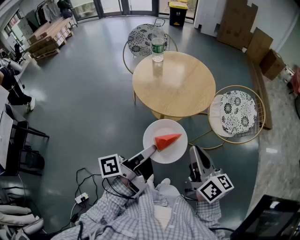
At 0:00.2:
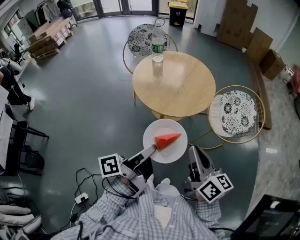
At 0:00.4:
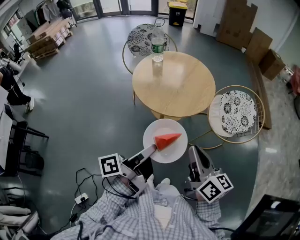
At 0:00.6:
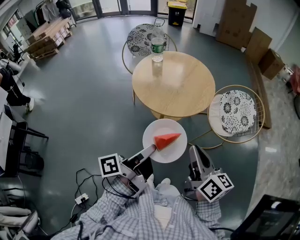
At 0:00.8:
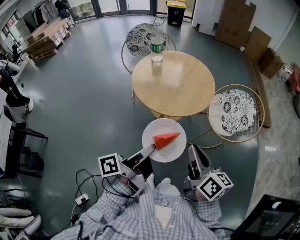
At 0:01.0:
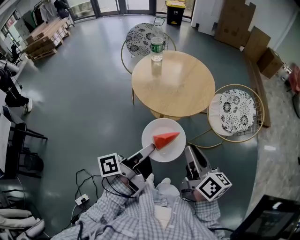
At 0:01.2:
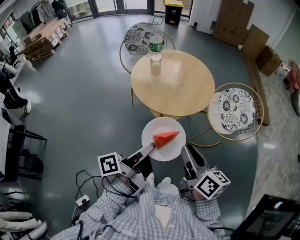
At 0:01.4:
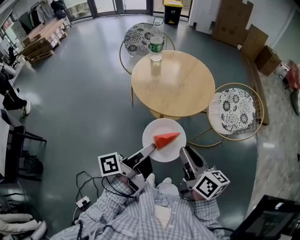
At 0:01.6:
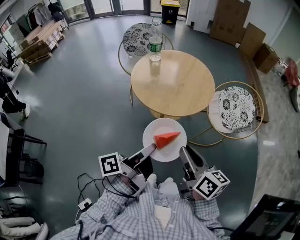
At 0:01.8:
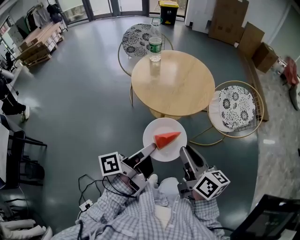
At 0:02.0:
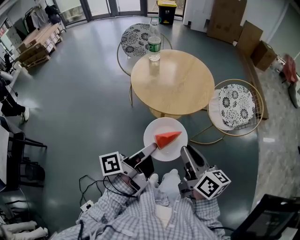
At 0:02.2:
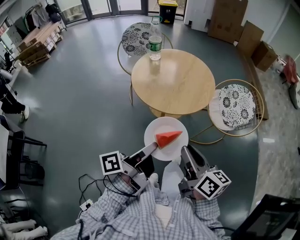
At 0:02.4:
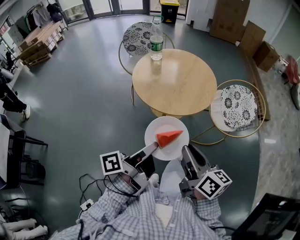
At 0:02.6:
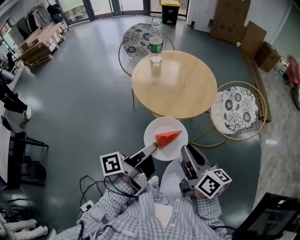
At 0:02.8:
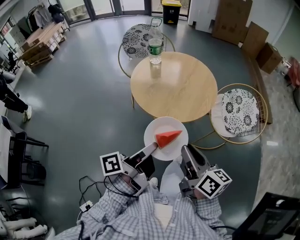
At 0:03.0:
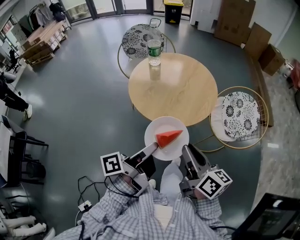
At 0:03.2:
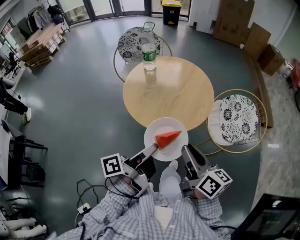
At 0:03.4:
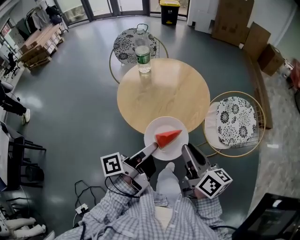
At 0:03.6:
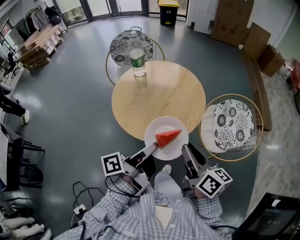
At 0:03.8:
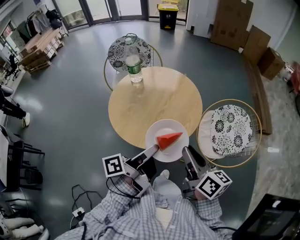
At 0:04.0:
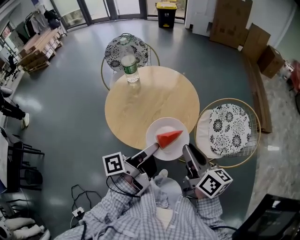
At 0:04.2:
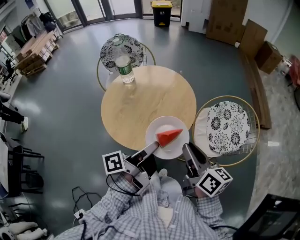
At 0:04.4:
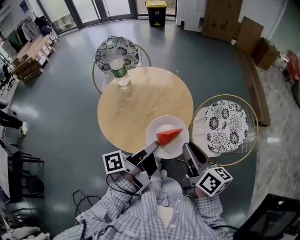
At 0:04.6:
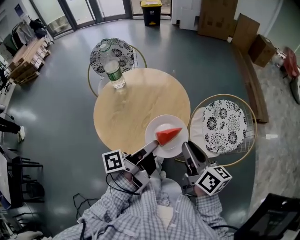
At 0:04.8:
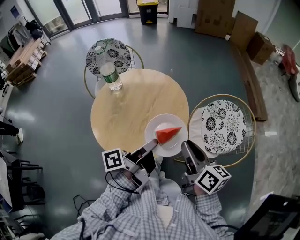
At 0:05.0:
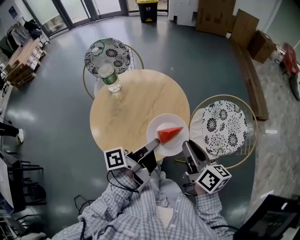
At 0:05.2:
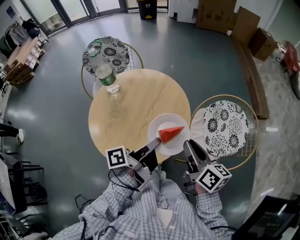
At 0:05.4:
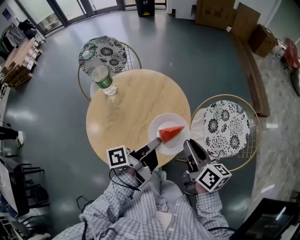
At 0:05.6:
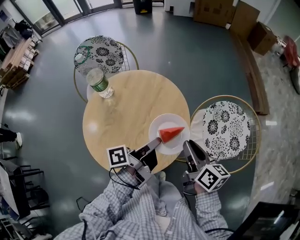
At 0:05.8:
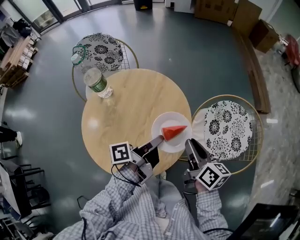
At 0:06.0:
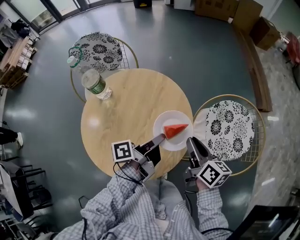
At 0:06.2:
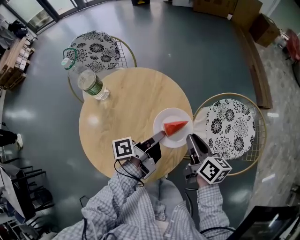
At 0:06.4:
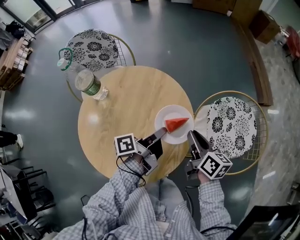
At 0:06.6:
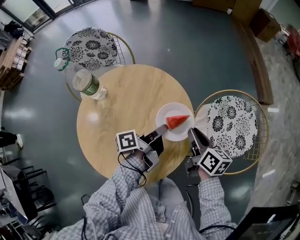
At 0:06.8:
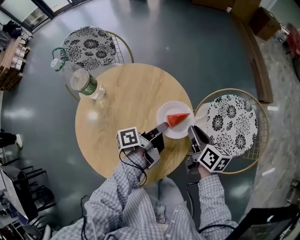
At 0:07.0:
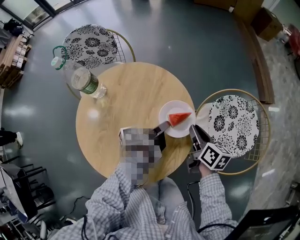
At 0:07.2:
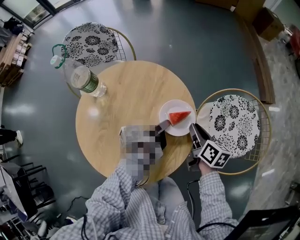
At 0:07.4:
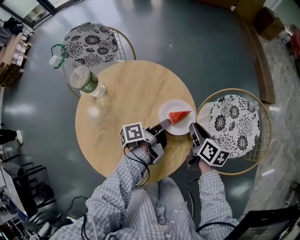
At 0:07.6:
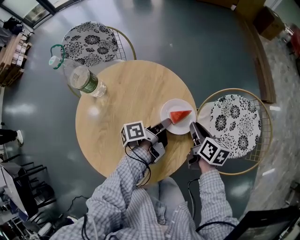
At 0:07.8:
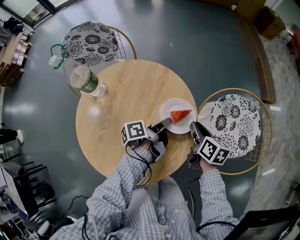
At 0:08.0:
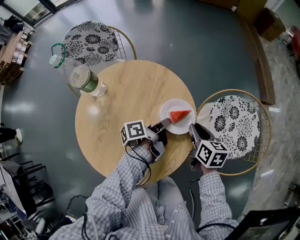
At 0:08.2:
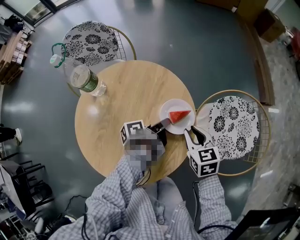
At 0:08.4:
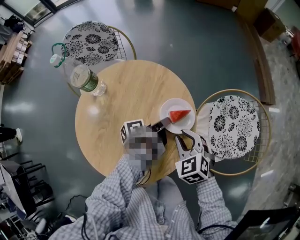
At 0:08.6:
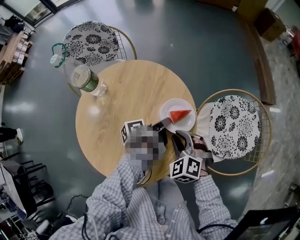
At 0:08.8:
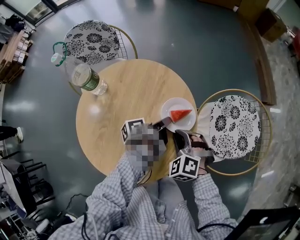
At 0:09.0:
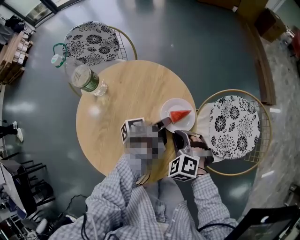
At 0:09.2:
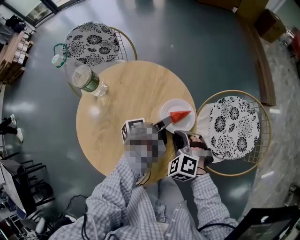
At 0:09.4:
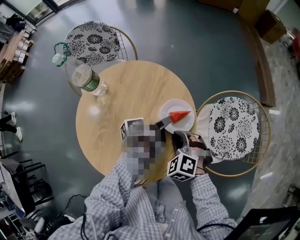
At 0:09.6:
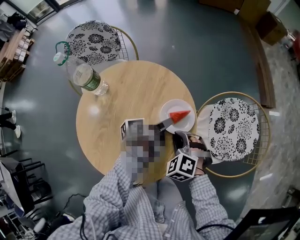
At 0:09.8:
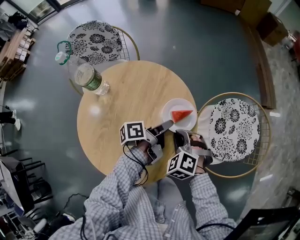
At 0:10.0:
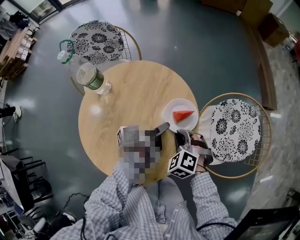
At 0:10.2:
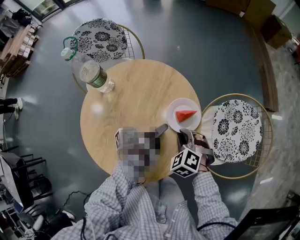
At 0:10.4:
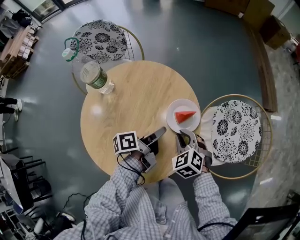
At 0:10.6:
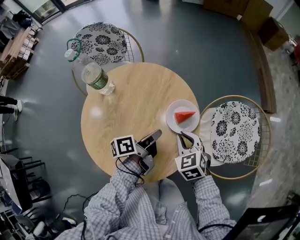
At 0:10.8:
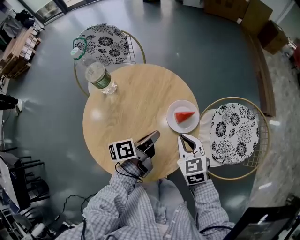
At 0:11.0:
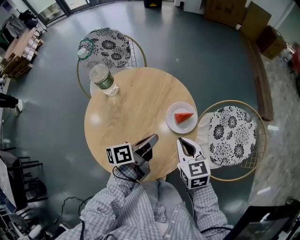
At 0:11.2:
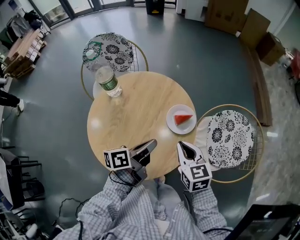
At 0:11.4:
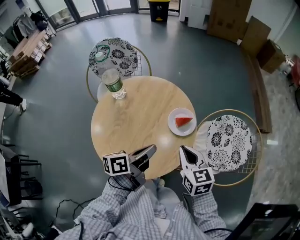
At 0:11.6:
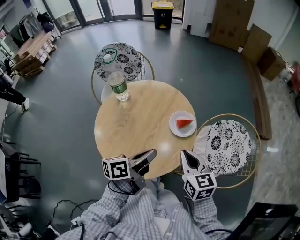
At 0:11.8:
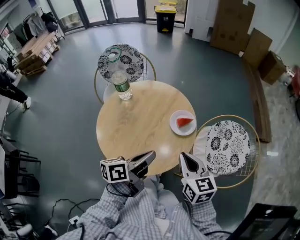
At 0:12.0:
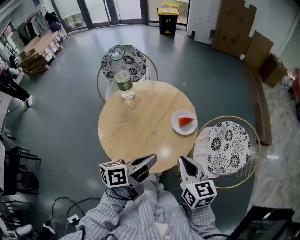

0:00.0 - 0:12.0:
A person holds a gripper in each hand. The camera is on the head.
0:00.0 - 0:01.6: The right gripper ends up roughly 5 cm from where it was.
0:01.6 - 0:03.0: The right gripper shifts by some 10 cm.
0:03.0 - 0:04.4: The right gripper changes place by some 20 cm.
0:04.4 - 0:06.0: The right gripper shifts by approximately 20 cm.
0:06.0 - 0:07.6: The right gripper is displaced downward by approximately 10 cm.
0:07.6 - 0:09.0: The right gripper changes place by some 10 cm, and twists approximately 90 degrees counterclockwise, seen from behind.
0:10.4 - 0:12.0: The right gripper heads upward, covering approximately 20 cm, and tips its fingers upward by some 30 degrees.

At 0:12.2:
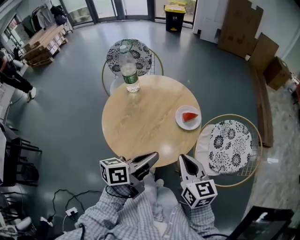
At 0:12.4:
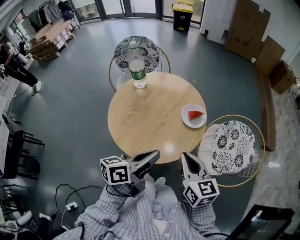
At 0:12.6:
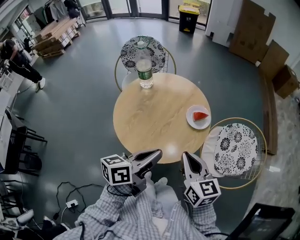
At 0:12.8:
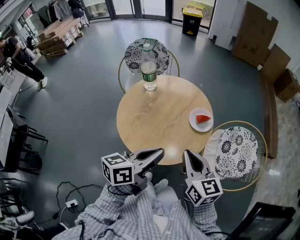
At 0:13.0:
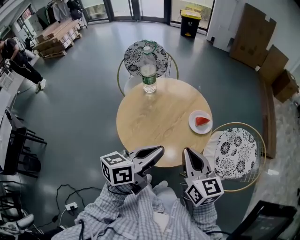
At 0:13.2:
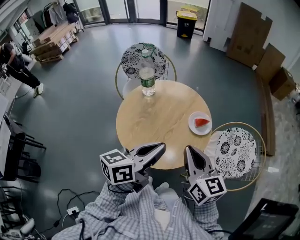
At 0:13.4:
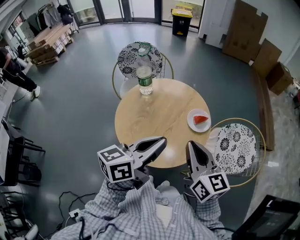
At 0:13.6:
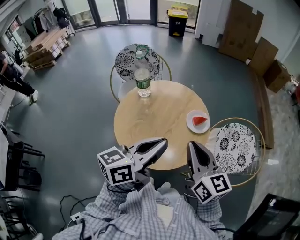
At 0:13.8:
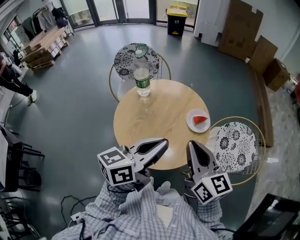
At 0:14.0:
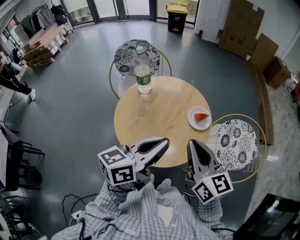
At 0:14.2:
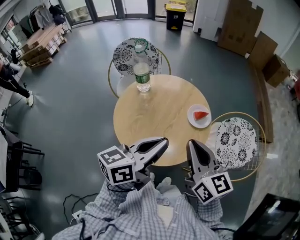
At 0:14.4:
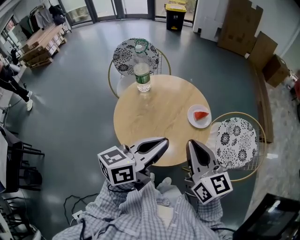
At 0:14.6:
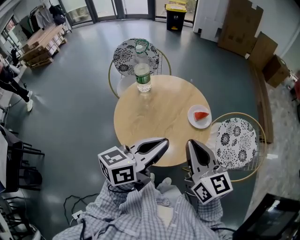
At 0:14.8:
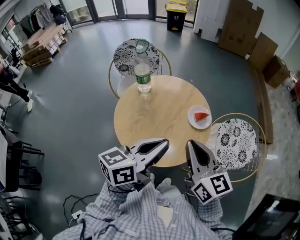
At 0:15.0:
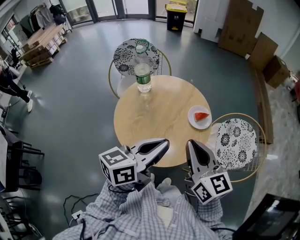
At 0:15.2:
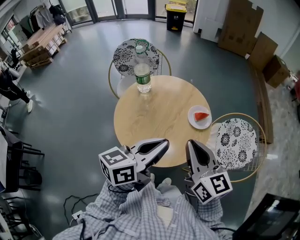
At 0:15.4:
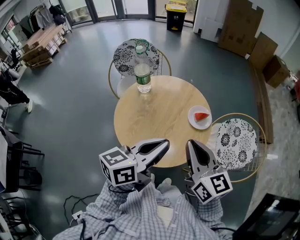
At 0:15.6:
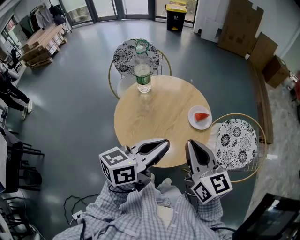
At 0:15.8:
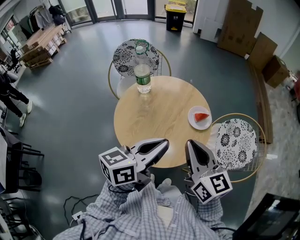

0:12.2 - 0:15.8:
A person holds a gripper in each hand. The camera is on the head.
0:12.2 - 0:14.0: The right gripper goes about 10 cm upward.

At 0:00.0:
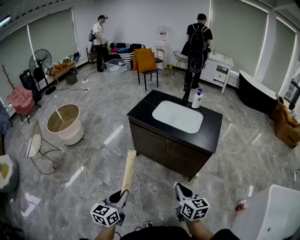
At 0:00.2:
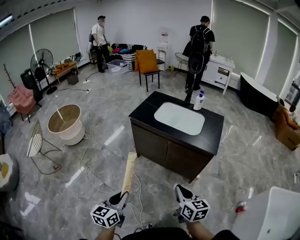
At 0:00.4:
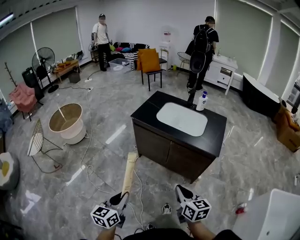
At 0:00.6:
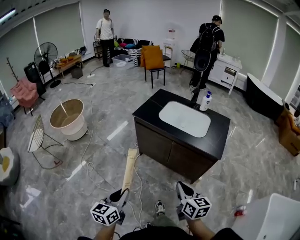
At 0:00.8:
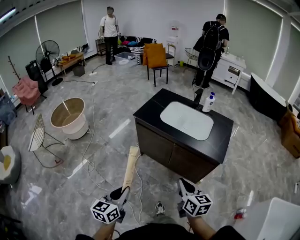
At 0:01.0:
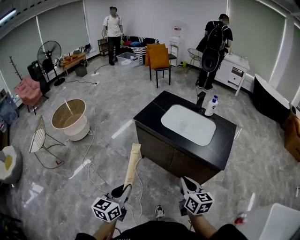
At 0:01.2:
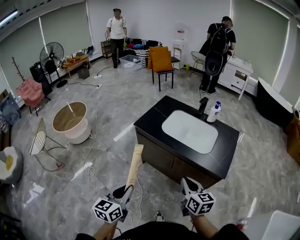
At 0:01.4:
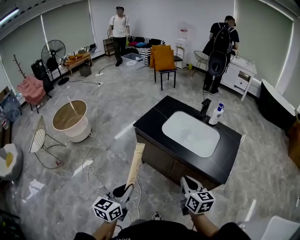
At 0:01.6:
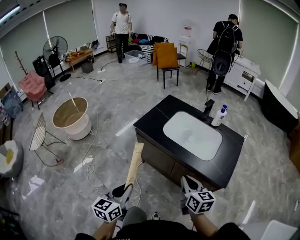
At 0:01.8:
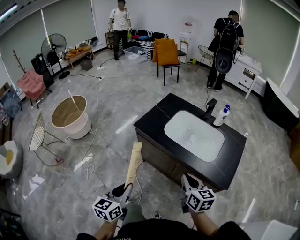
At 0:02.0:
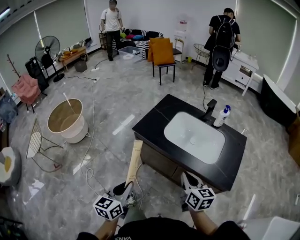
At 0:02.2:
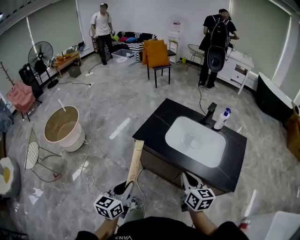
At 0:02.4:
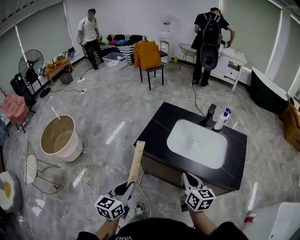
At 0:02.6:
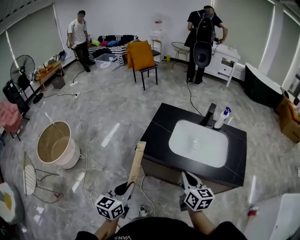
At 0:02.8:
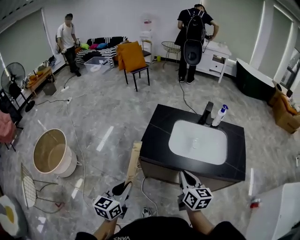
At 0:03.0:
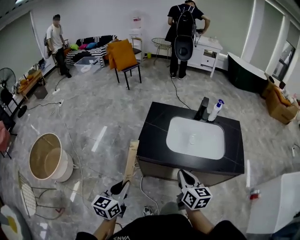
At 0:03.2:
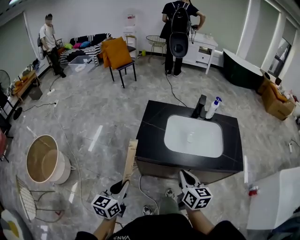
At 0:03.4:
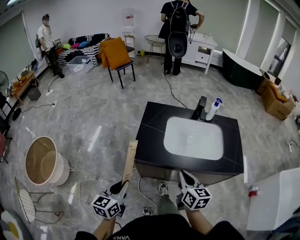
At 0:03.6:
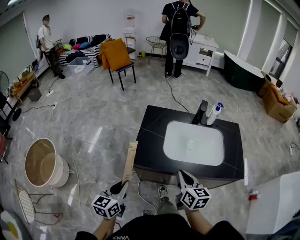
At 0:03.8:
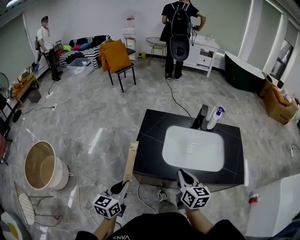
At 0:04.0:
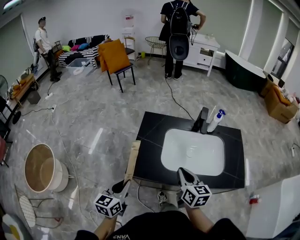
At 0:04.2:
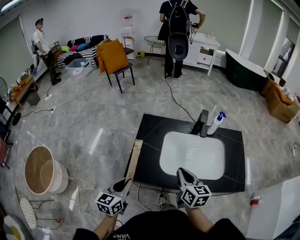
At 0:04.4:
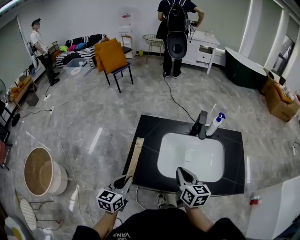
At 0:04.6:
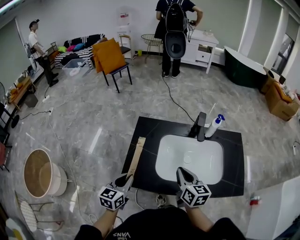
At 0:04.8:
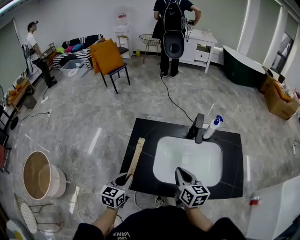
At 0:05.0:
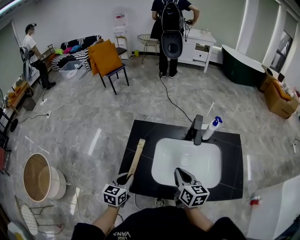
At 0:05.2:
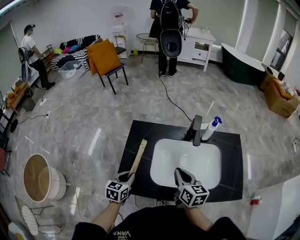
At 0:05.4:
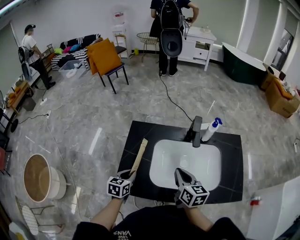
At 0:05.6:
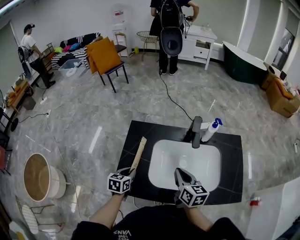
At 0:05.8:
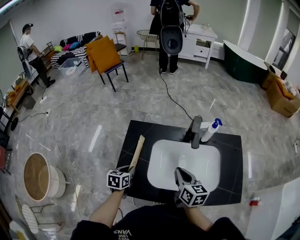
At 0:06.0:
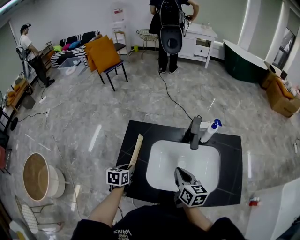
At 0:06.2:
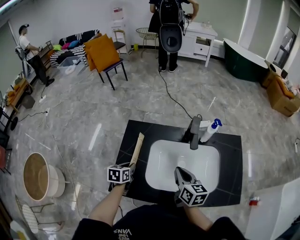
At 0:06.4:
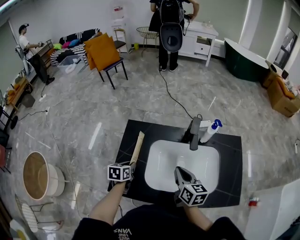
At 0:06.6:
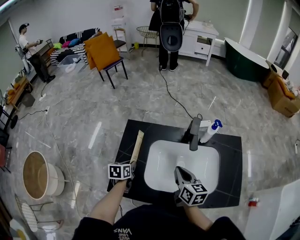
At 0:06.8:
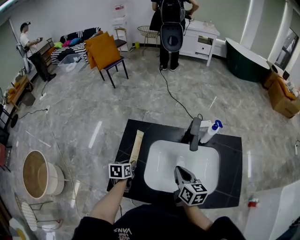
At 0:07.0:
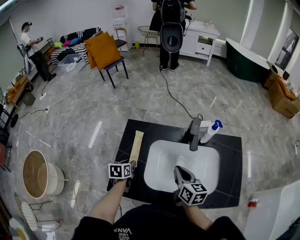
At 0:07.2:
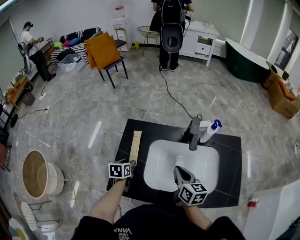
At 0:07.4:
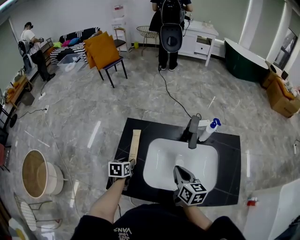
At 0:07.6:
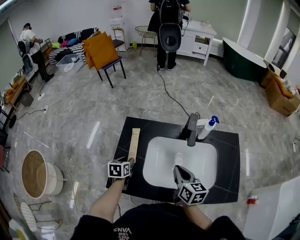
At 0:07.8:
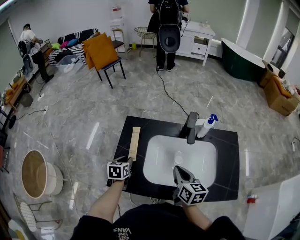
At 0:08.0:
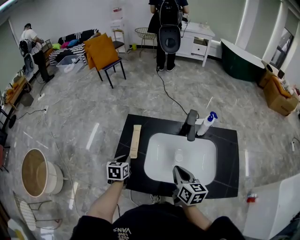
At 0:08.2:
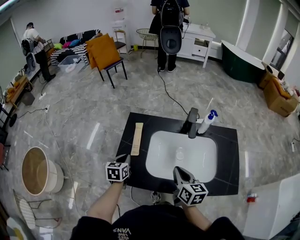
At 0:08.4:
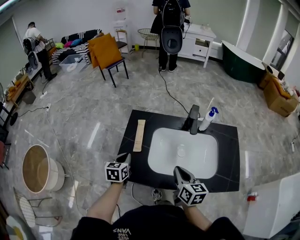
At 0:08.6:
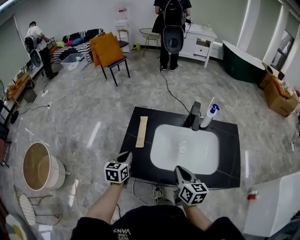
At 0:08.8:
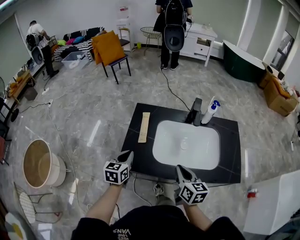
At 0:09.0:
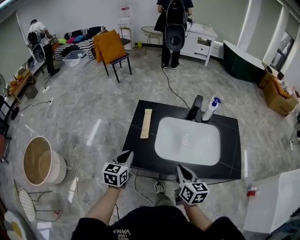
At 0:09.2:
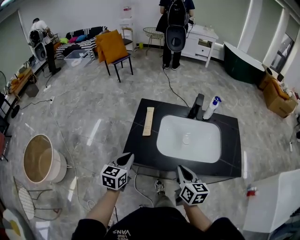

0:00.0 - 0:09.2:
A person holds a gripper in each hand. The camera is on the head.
0:00.0 - 0:01.6: Both grippers move forward, approximately 25 cm.
0:01.6 - 0:03.0: The left gripper moves forward and to the left, some 30 cm, and swivels some 20 degrees. The right gripper travels to the left and forward by about 25 cm, and rotates about 30 degrees.
0:03.0 - 0:04.6: The grippers both shift forward by some 25 cm.
0:04.6 - 0:06.2: The right gripper goes approximately 5 cm forward, while the left gripper shifts roughly 20 cm forward and downward, and rotates some 30 degrees.
0:06.2 - 0:07.6: The left gripper opens up.
0:07.6 - 0:09.2: The right gripper moves backward, about 20 cm. Meanwhile the left gripper heads backward and upward, covering some 25 cm, turns by roughly 30 degrees, and closes.
